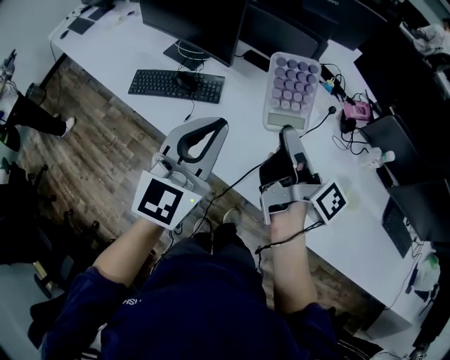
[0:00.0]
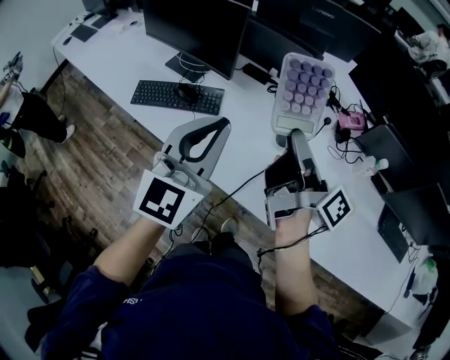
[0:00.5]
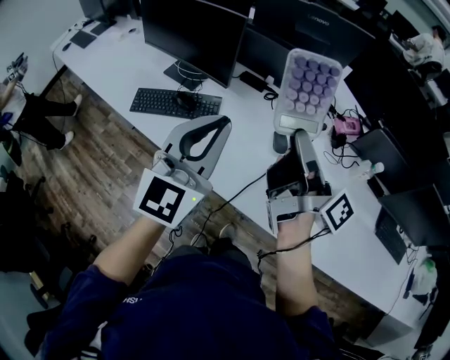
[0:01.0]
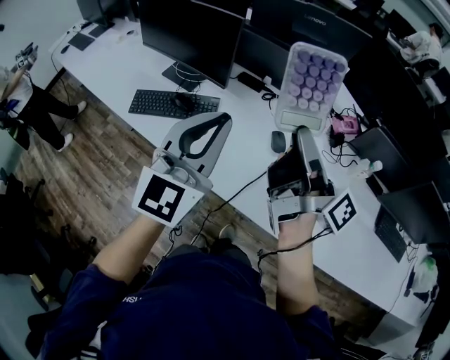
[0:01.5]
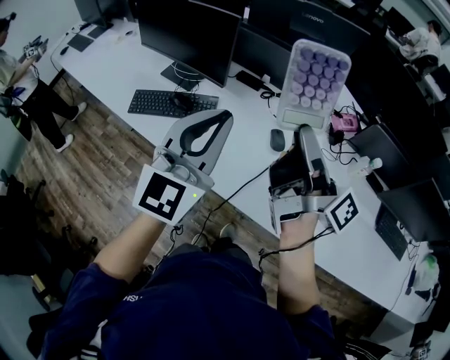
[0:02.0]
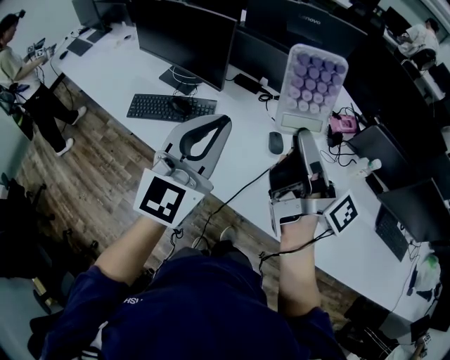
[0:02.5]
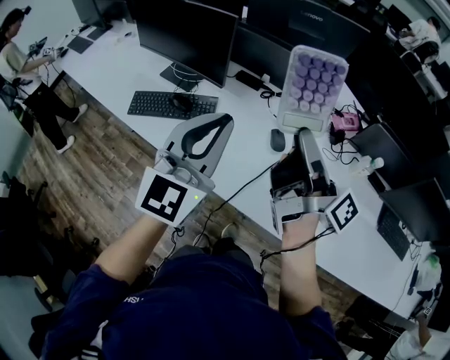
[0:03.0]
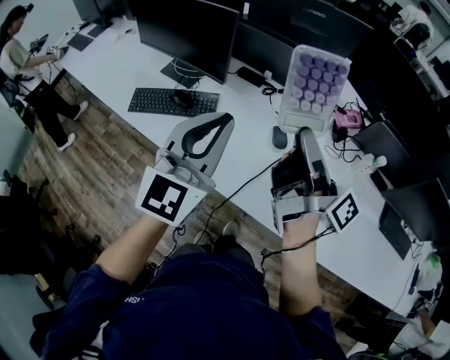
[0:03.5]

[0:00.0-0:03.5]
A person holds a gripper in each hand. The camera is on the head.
0:00.0 to 0:02.0: The right gripper shifts roughly 10 cm upward. Meanwhile the left gripper moves upward, roughly 5 cm.
0:02.0 to 0:03.5: The grippers make only small movements.

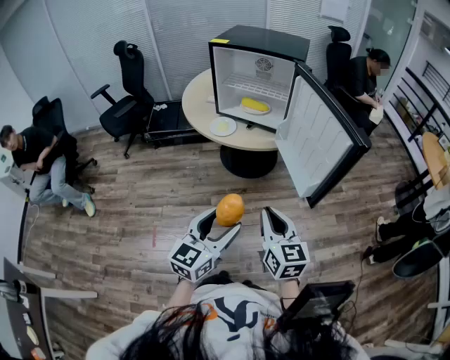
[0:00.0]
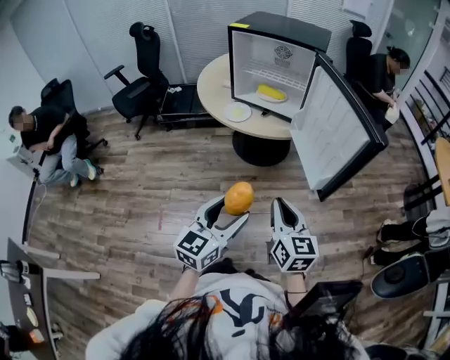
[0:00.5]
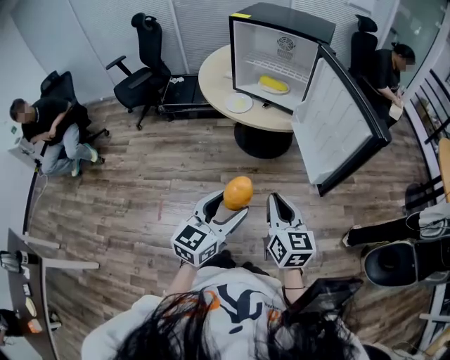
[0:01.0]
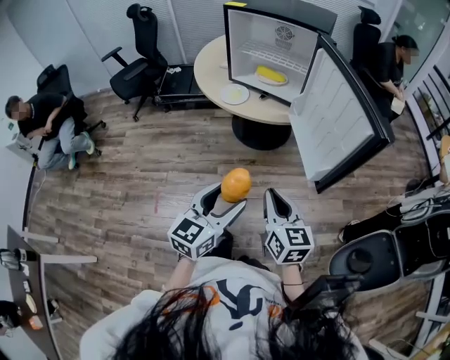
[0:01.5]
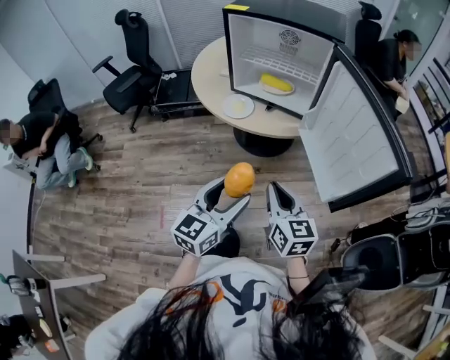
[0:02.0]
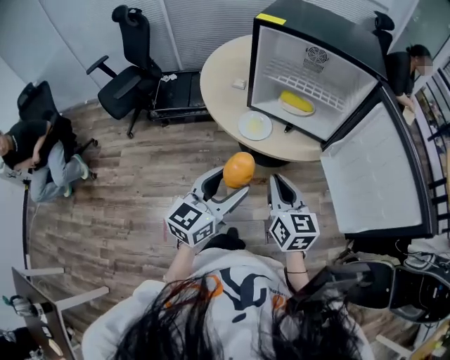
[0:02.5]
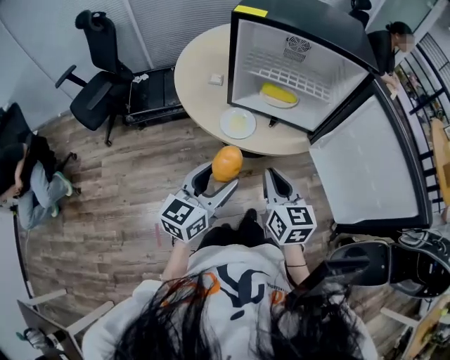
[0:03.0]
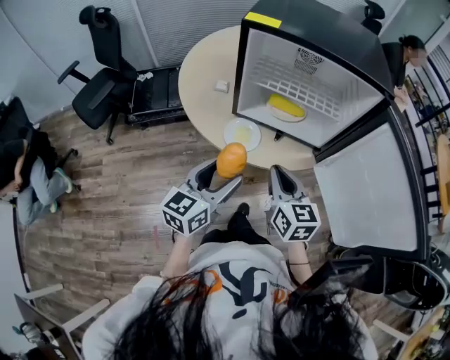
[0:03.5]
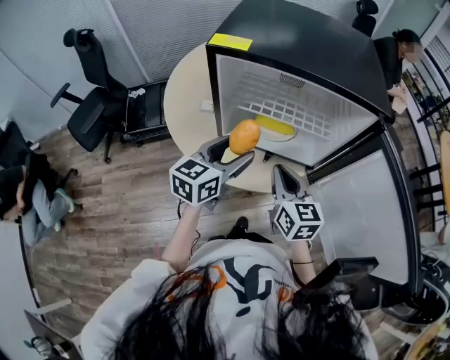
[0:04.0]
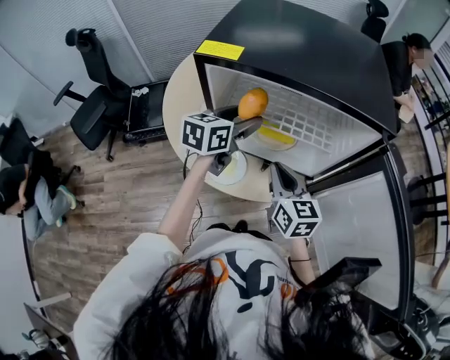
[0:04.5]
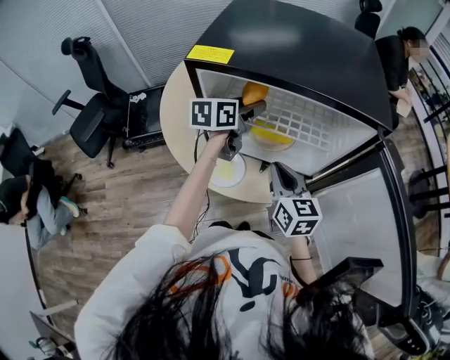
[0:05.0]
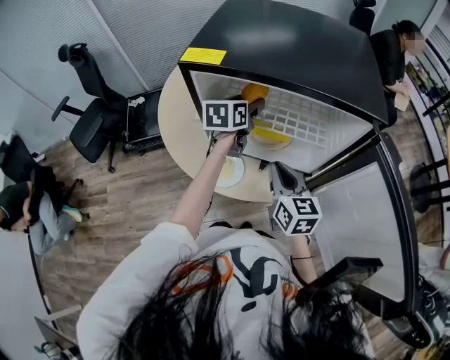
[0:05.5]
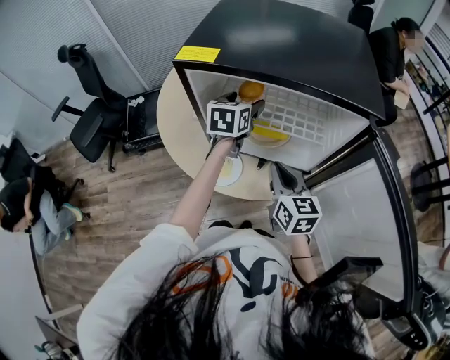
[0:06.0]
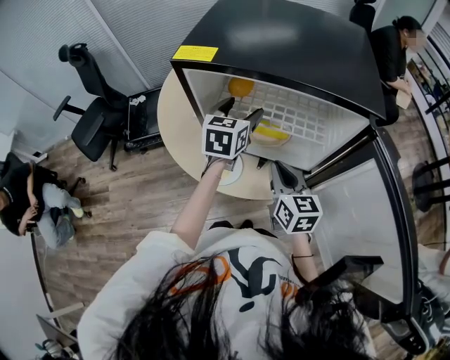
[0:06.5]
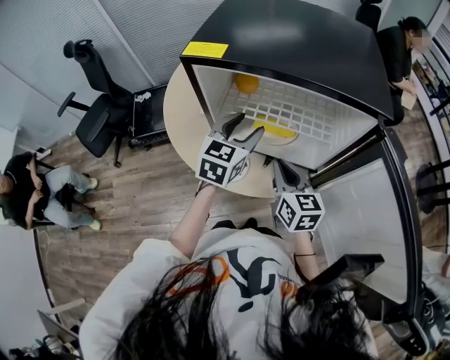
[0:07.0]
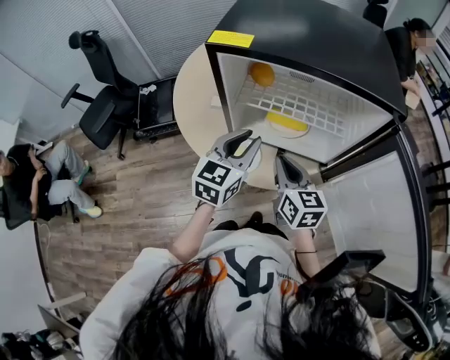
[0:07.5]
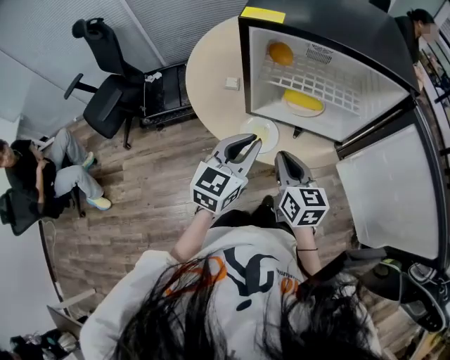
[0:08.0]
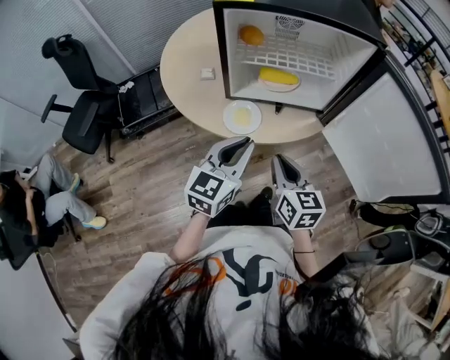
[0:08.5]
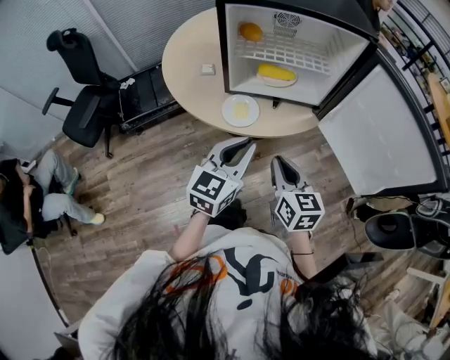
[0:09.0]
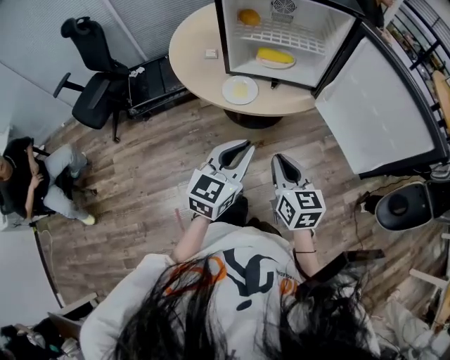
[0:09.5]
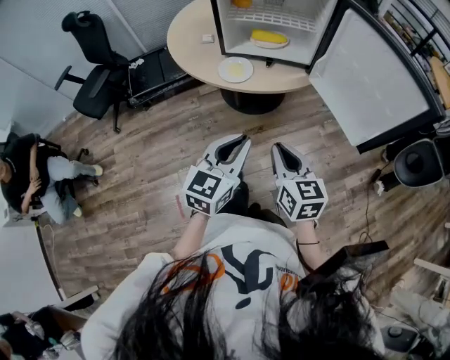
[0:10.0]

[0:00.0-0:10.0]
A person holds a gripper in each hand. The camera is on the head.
0:00.0 to 0:02.0: Both grippers move forward, roughly 15 cm.
0:02.0 to 0:04.0: Both grippers move forward, approximately 35 cm.
0:04.0 to 0:06.0: The right gripper ends up approximately 5 cm from where it was; the left gripper is displaced forward by approximately 20 cm, and swivels some 20 degrees.
0:06.0 to 0:08.0: The right gripper moves to the left and backward, about 15 cm. Meanwhile the left gripper travels backward by approximately 25 cm, swivels approximately 20 degrees, and closes up.
0:08.0 to 0:10.0: The two grippers go roughly 30 cm backward.

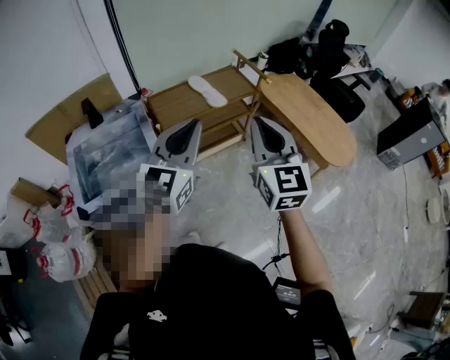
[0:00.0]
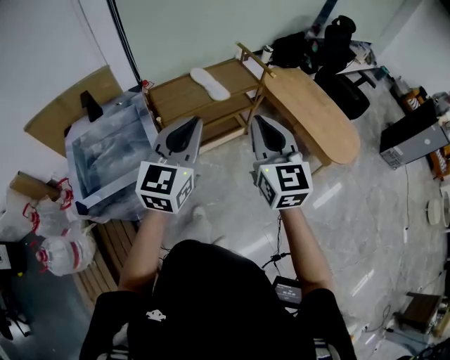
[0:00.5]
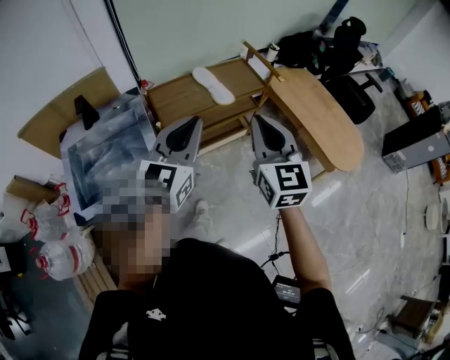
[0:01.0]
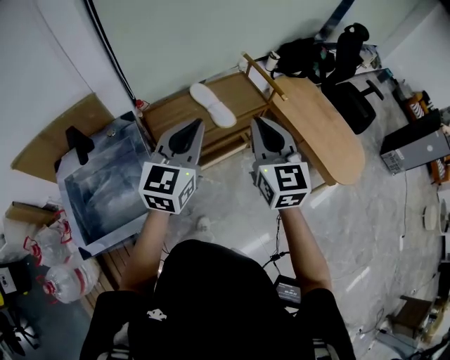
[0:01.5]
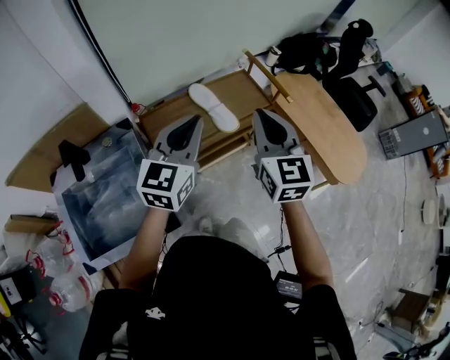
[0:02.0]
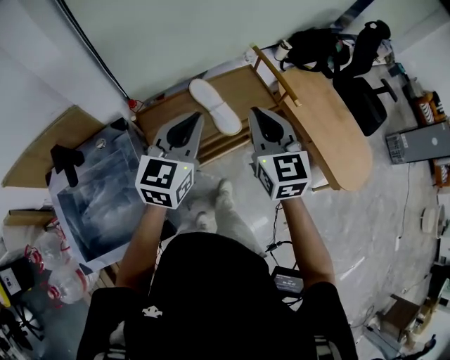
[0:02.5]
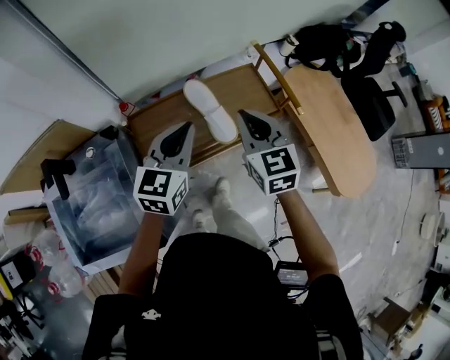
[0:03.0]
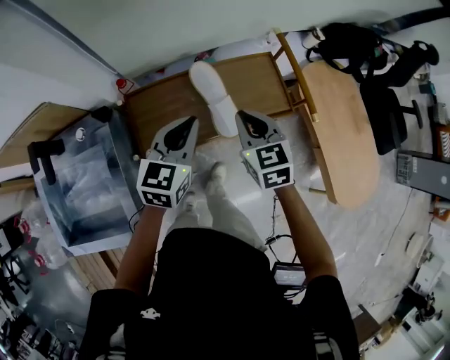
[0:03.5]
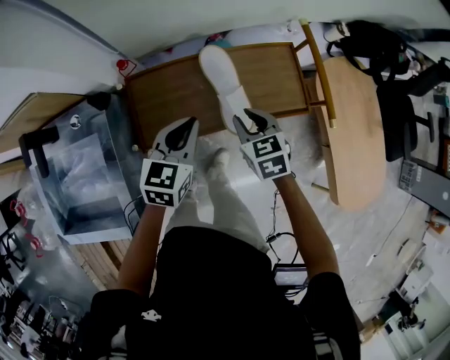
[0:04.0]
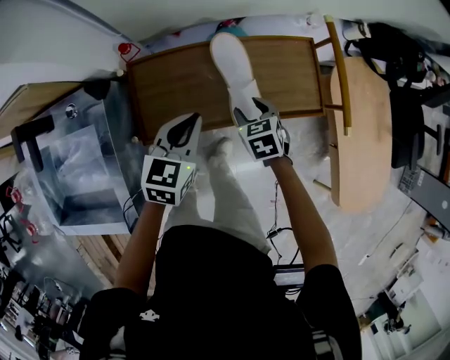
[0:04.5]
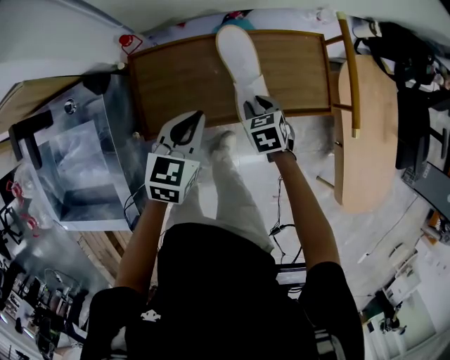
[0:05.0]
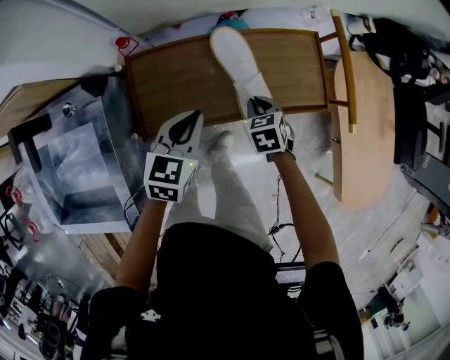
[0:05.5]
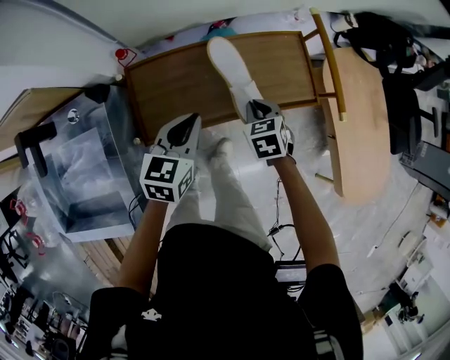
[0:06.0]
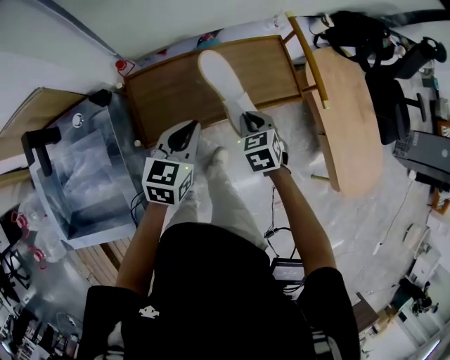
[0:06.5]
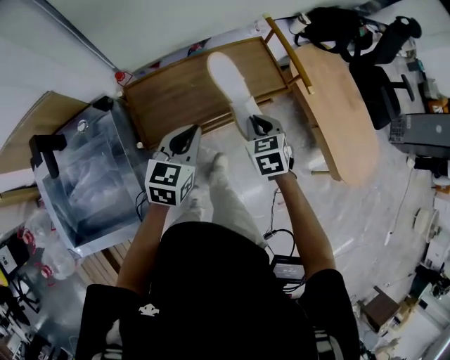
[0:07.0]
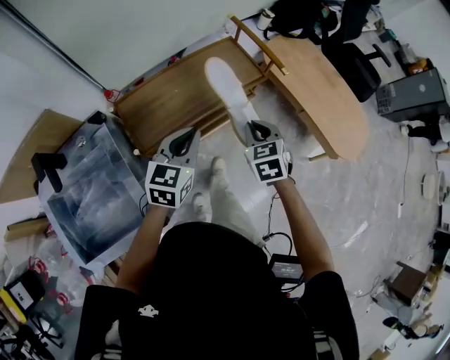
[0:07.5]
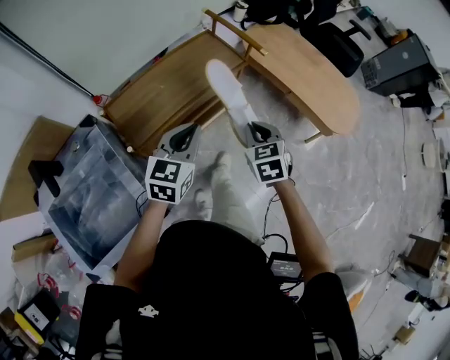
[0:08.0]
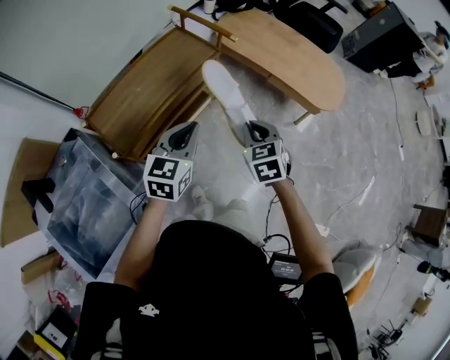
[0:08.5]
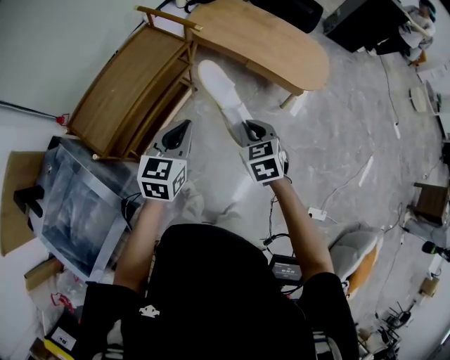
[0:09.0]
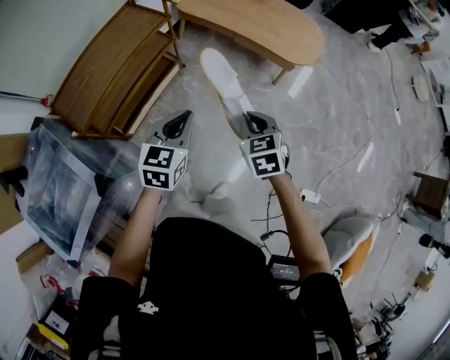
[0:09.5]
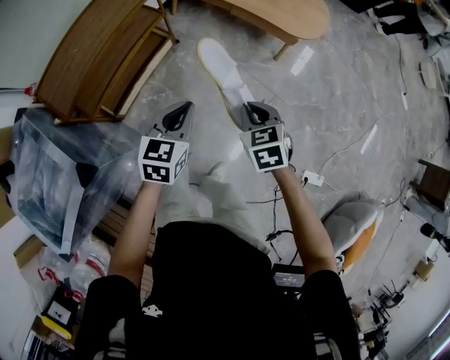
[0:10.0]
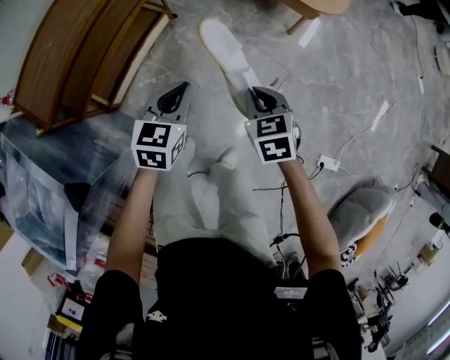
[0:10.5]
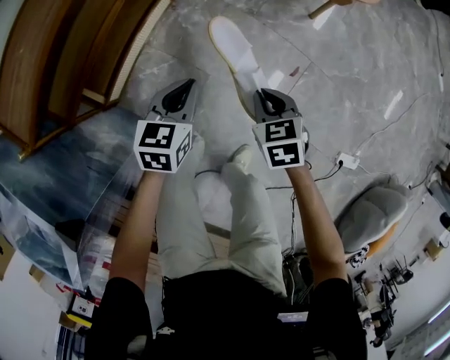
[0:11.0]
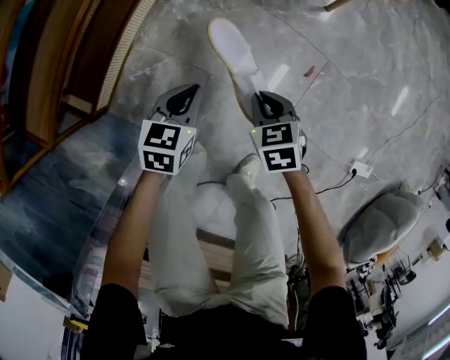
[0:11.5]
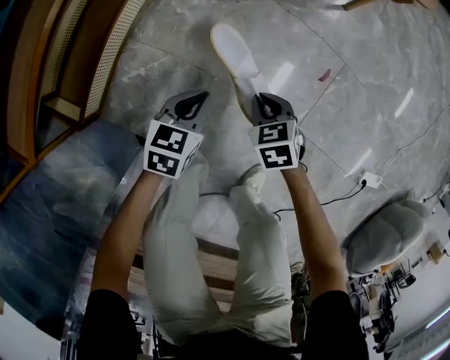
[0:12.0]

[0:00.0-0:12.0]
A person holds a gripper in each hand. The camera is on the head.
0:00.0 to 0:02.0: Both grippers move forward, roughly 30 cm.
0:02.0 to 0:04.0: The grippers both shift downward and forward by approximately 35 cm. The right gripper tilts its fingers roughly 40 degrees downward, and opens. Meanwhile the left gripper changes its angle by roughly 30 degrees.
0:04.0 to 0:06.0: The right gripper heads downward, covering about 5 cm, and opens, then closes once more.
0:06.0 to 0:08.0: The right gripper ends up approximately 35 cm from where it was, and swivels about 30 degrees. The left gripper changes place by roughly 25 cm, and turns by some 30 degrees.
0:08.0 to 0:10.0: The left gripper goes about 35 cm to the right and downward, while the right gripper shifts some 35 cm to the right and backward.
0:10.0 to 0:12.0: Both grippers move downward, some 50 cm. The left gripper turns by some 20 degrees.

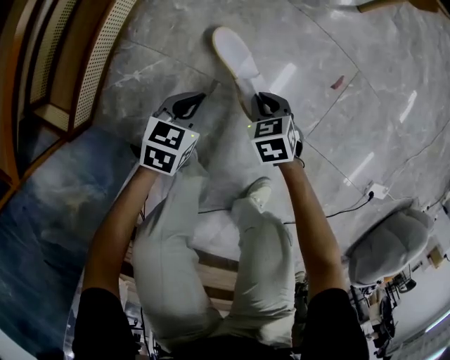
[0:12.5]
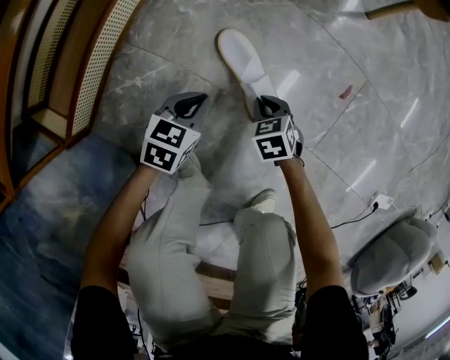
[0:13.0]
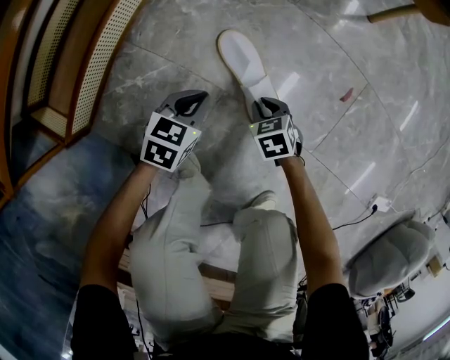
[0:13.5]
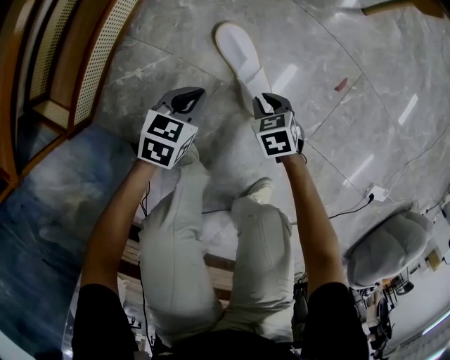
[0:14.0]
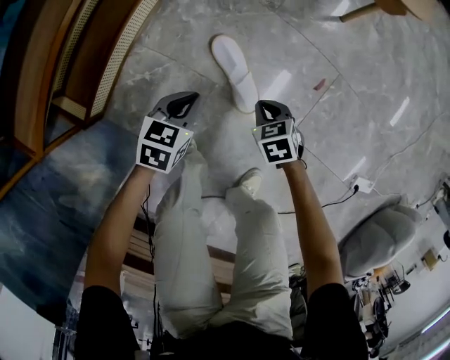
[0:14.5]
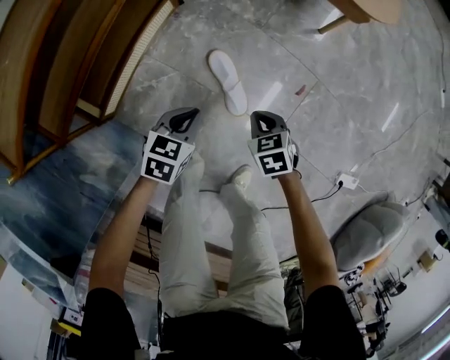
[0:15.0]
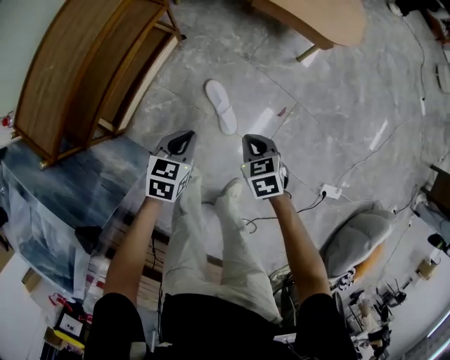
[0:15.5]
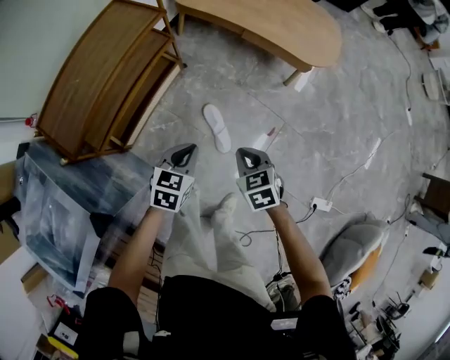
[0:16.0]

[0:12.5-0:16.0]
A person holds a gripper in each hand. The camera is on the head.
0:12.5 to 0:14.5: The grippers both shift upward by about 10 cm.
0:14.5 to 0:16.0: The two grippers go about 40 cm upward.
